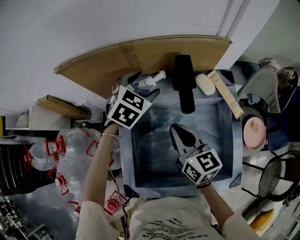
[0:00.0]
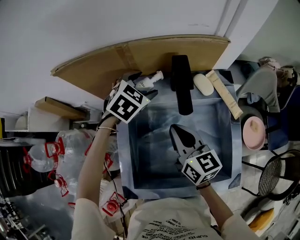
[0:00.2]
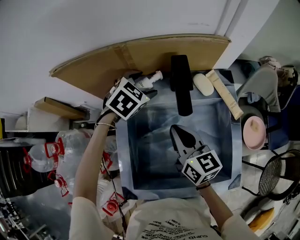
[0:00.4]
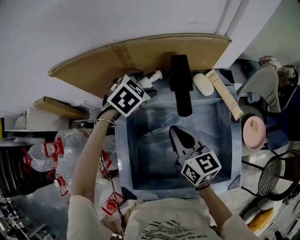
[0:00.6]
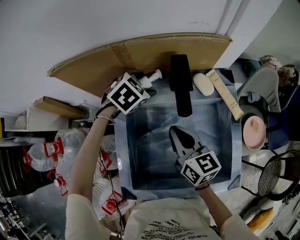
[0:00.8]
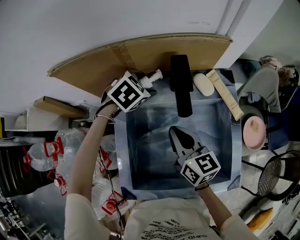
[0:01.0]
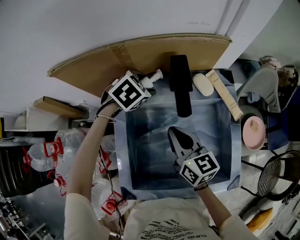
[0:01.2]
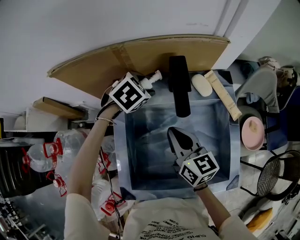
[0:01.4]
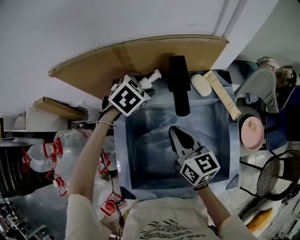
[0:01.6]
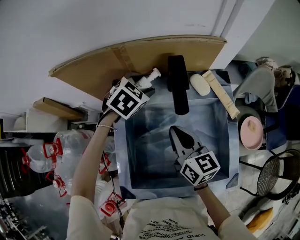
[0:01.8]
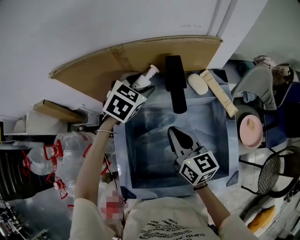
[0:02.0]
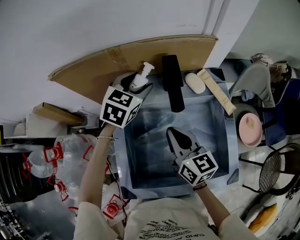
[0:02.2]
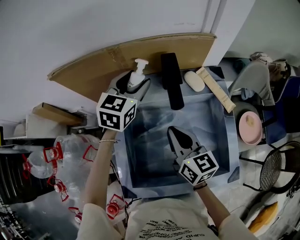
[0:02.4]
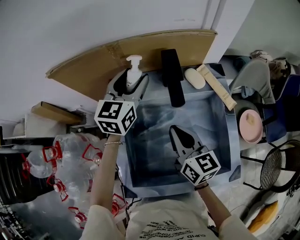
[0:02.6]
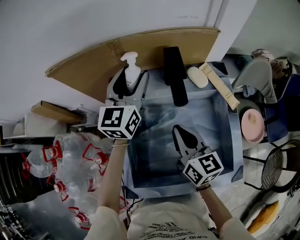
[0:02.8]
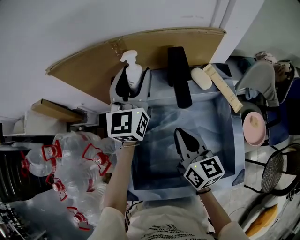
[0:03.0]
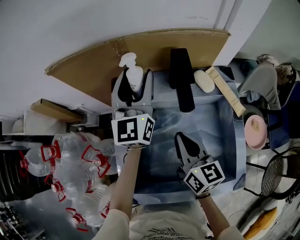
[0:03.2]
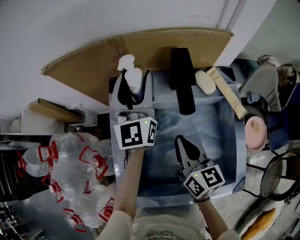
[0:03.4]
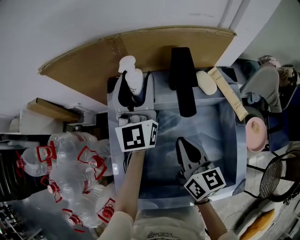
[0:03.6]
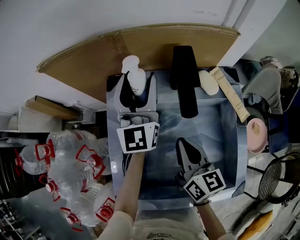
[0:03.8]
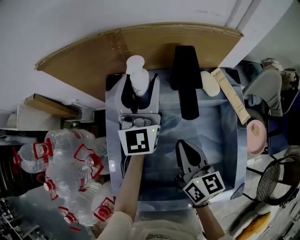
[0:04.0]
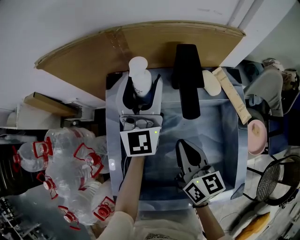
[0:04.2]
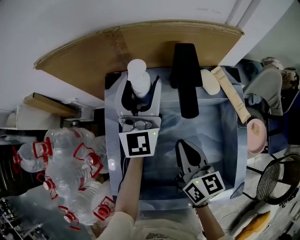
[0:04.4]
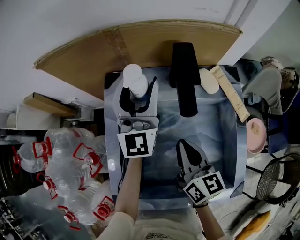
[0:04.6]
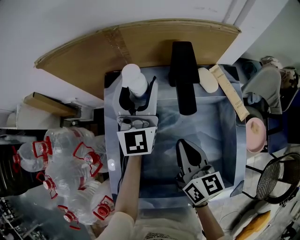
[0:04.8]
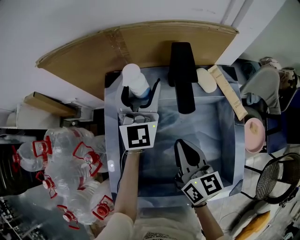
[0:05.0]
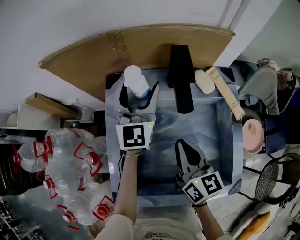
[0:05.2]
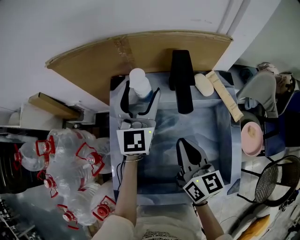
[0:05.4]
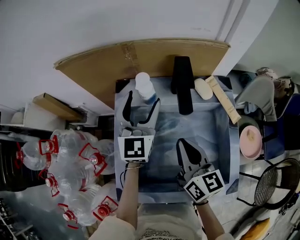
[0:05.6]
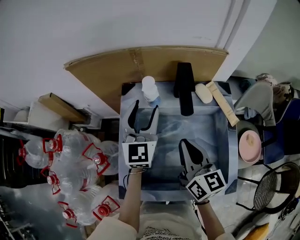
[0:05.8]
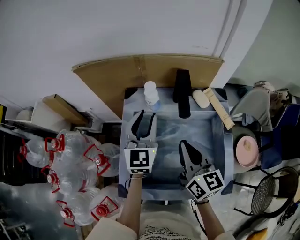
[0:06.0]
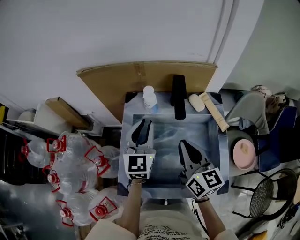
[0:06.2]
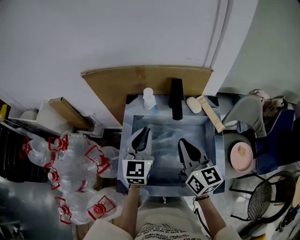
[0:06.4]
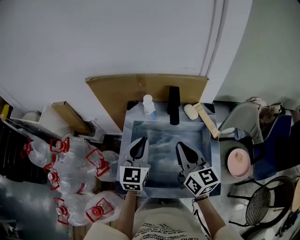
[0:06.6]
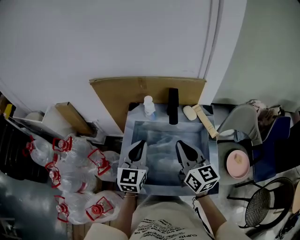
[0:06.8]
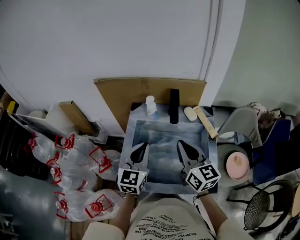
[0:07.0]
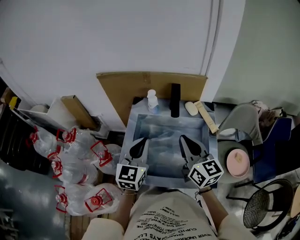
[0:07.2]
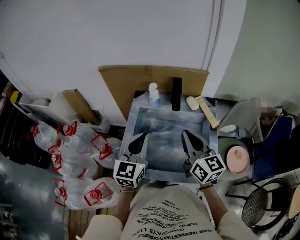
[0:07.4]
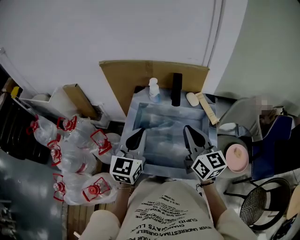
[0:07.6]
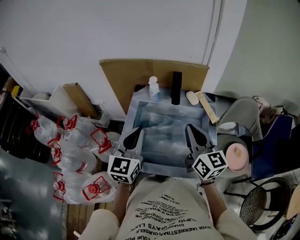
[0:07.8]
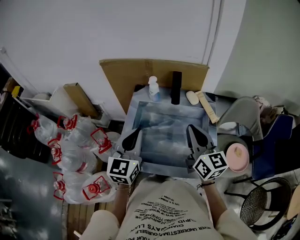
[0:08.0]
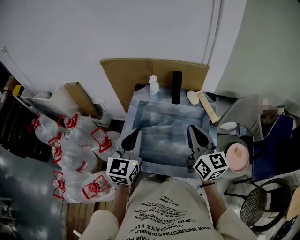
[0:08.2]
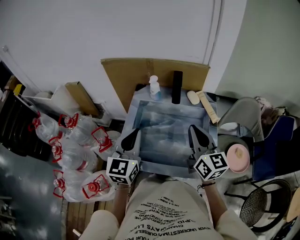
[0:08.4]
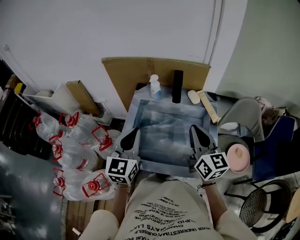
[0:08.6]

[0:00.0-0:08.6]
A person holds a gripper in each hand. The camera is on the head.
0:00.0 to 0:01.4: The left gripper is displaced downward by roughly 5 cm, and rotates about 20 degrees.
0:01.4 to 0:02.8: The left gripper shifts roughly 15 cm upward, and points its fingers some 60 degrees further upward.
0:02.8 to 0:04.4: The left gripper swivels some 30 degrees.
0:04.4 to 0:05.8: The right gripper is displaced upward by some 5 cm. The left gripper moves backward, roughly 5 cm.
0:05.8 to 0:07.2: The right gripper goes roughly 10 cm upward. Meanwhile the left gripper goes about 15 cm backward, and closes up.
0:07.2 to 0:08.6: The grippers make only small movements.

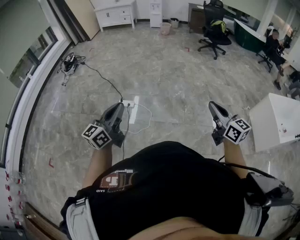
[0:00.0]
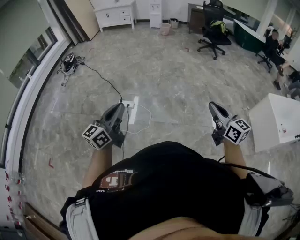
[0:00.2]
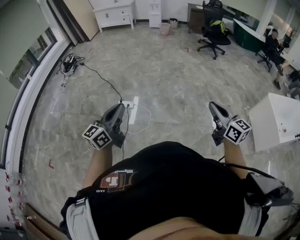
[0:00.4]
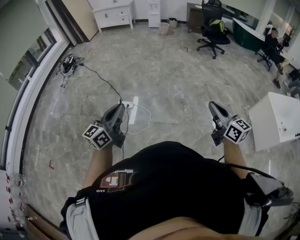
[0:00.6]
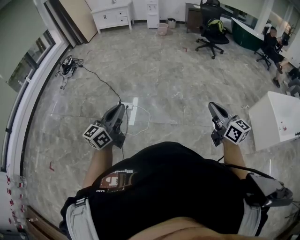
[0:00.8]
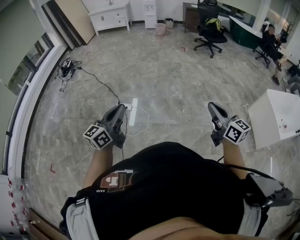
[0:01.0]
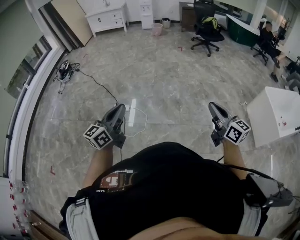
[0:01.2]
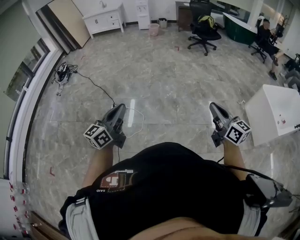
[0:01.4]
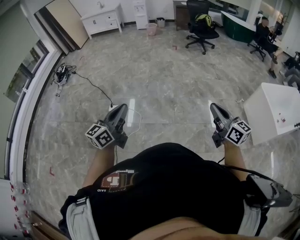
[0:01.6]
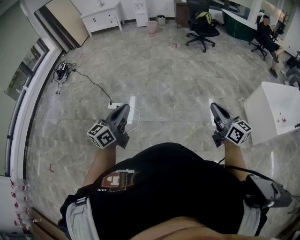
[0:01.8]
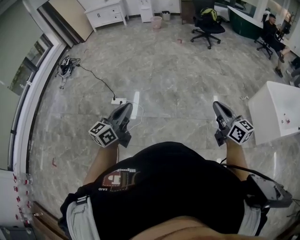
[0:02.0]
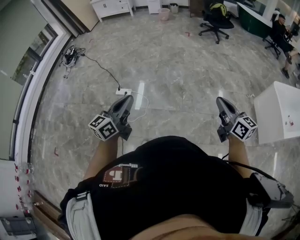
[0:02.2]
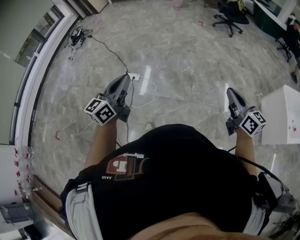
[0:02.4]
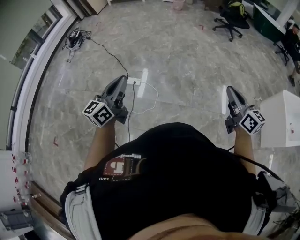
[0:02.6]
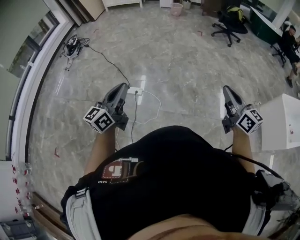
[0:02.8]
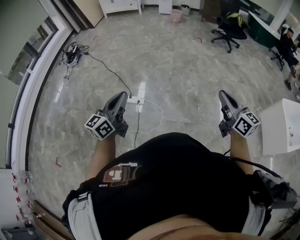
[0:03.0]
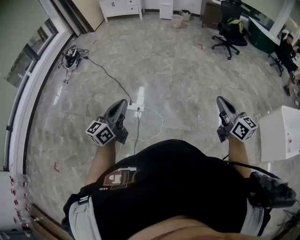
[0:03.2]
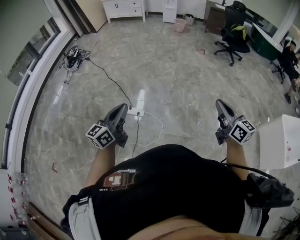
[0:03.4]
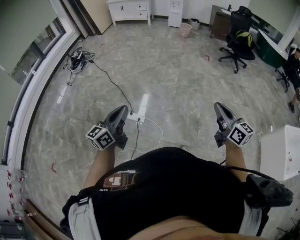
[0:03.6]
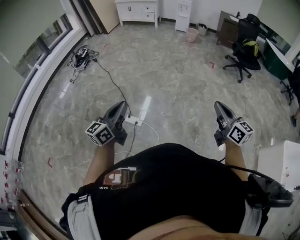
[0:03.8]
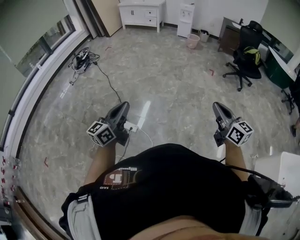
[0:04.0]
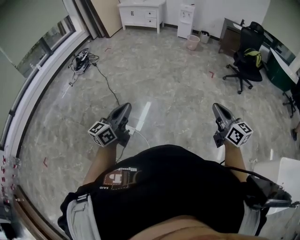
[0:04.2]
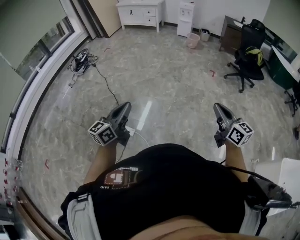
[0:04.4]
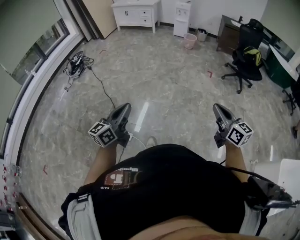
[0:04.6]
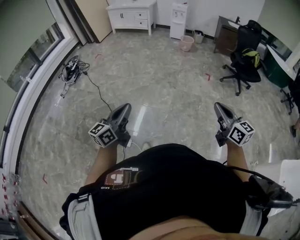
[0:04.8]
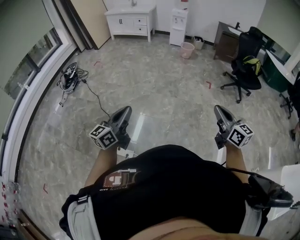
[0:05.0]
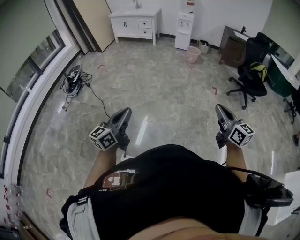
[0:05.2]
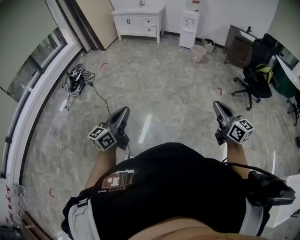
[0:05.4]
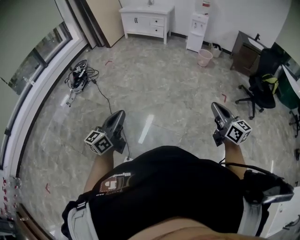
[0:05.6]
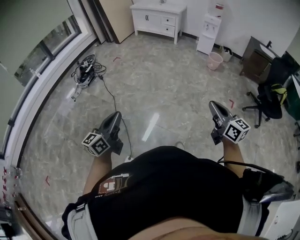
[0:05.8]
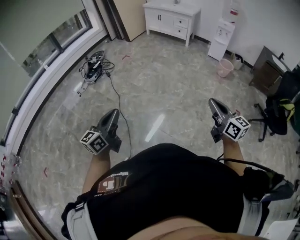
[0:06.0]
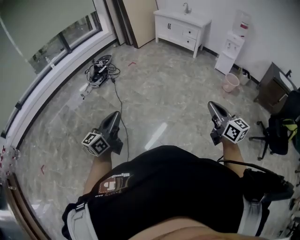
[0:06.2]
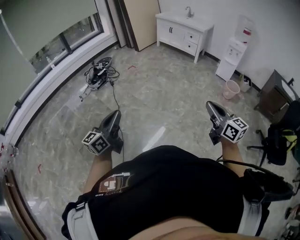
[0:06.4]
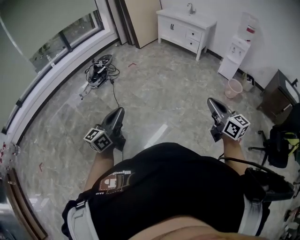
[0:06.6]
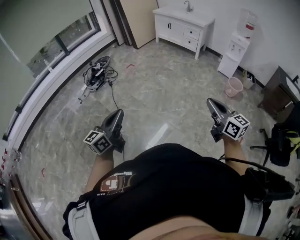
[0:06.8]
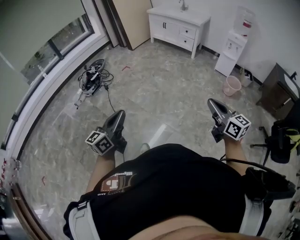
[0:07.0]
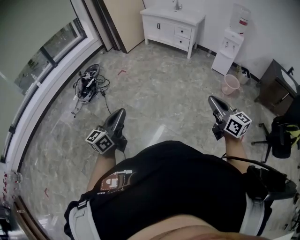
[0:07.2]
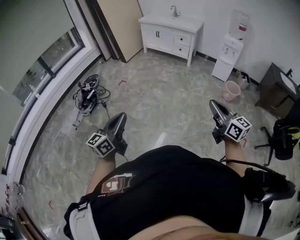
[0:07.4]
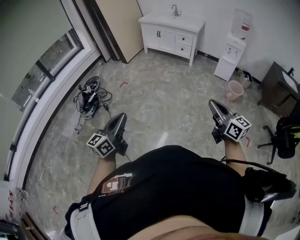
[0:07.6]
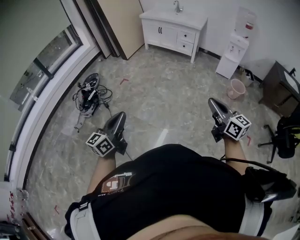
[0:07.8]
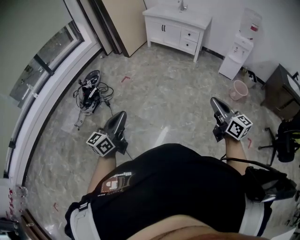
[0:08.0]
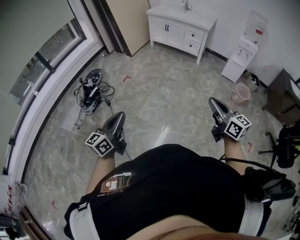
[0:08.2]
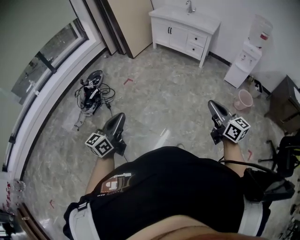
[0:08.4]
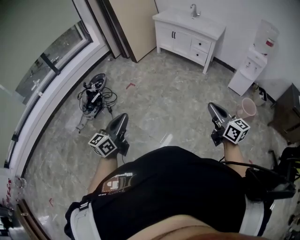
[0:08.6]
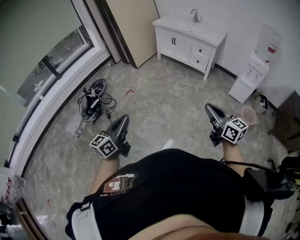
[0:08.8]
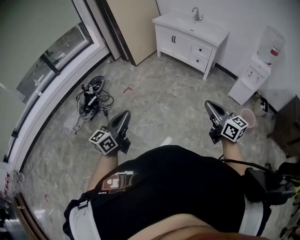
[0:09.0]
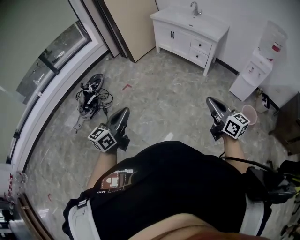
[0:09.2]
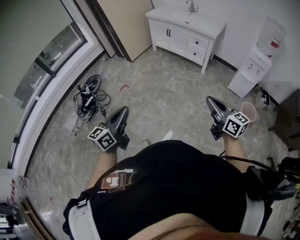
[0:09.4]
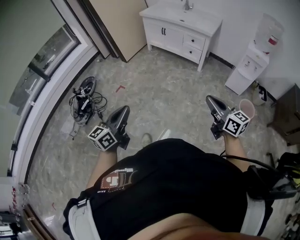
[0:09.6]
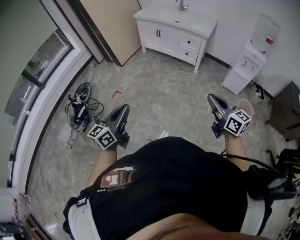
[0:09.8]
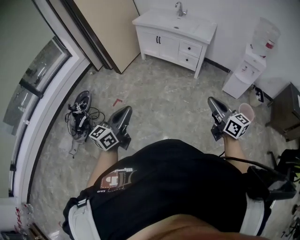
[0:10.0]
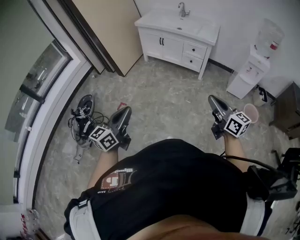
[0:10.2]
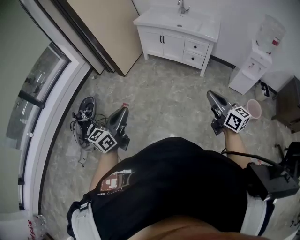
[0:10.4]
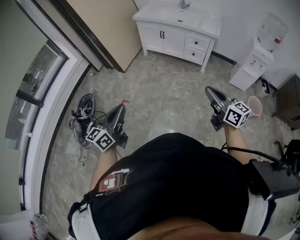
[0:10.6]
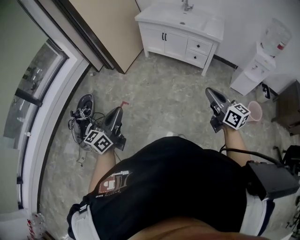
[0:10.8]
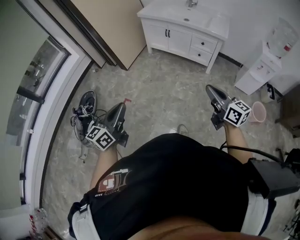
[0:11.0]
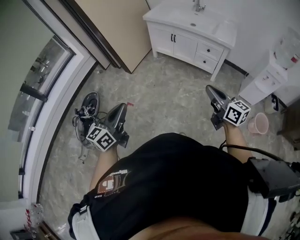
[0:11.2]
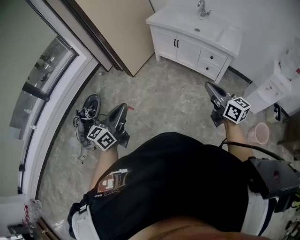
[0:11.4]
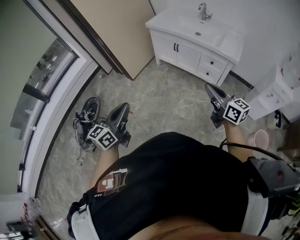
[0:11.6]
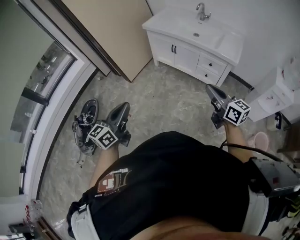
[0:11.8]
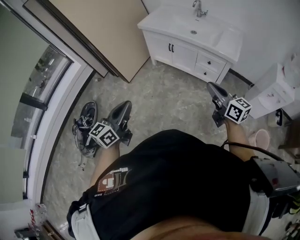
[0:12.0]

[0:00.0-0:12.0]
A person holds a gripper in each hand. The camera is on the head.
0:00.0 to 0:01.6: Both grippers move to the right, roughly 20 cm.
0:01.6 to 0:03.0: The two grippers go about 35 cm to the left and forward.
0:03.0 to 0:04.4: The grippers both shift forward and to the right by roughly 40 cm.
0:04.4 to 0:06.0: The two grippers travel together, forward and to the left, approximately 60 cm.
0:06.0 to 0:07.6: The pair of grippers is taken forward, about 50 cm.
0:07.6 to 0:09.0: The right gripper heads forward, covering approximately 40 cm, while the left gripper goes roughly 35 cm forward and to the right.
0:09.0 to 0:10.4: The left gripper goes approximately 35 cm forward; the right gripper shifts roughly 30 cm forward and to the left.
0:10.4 to 0:12.0: The grippers both shift forward by approximately 40 cm.

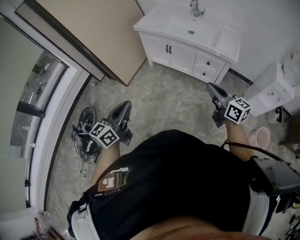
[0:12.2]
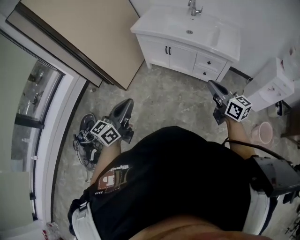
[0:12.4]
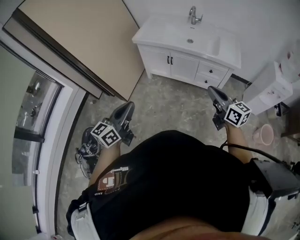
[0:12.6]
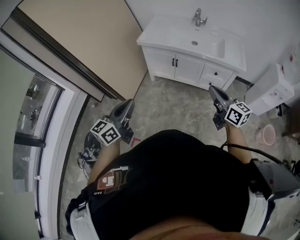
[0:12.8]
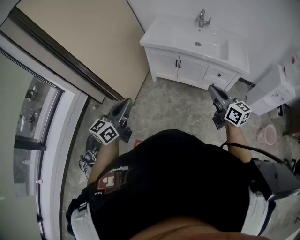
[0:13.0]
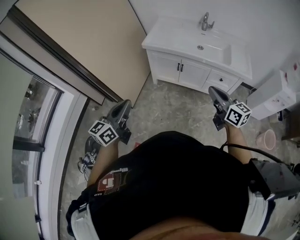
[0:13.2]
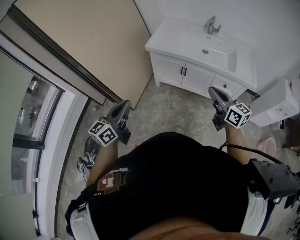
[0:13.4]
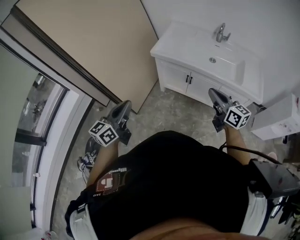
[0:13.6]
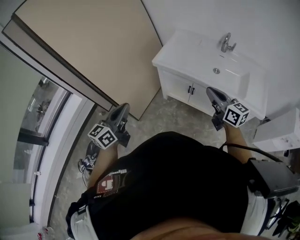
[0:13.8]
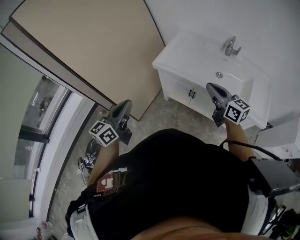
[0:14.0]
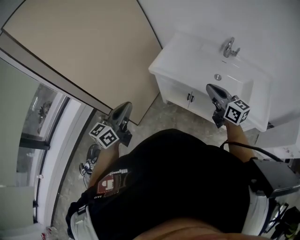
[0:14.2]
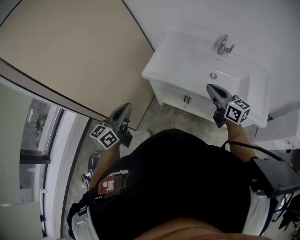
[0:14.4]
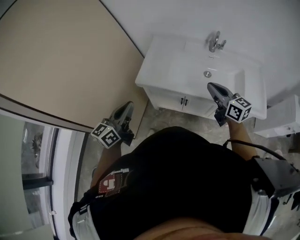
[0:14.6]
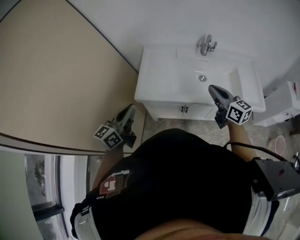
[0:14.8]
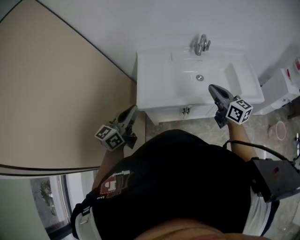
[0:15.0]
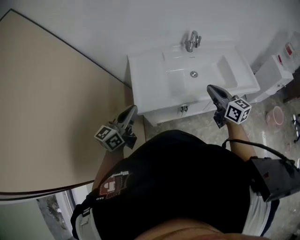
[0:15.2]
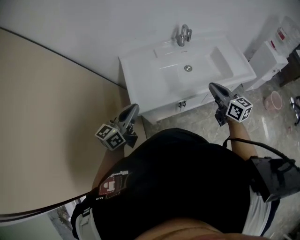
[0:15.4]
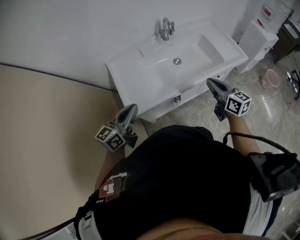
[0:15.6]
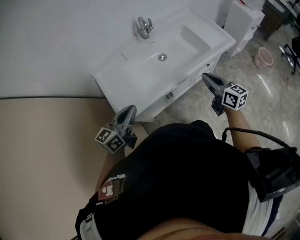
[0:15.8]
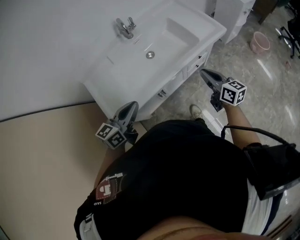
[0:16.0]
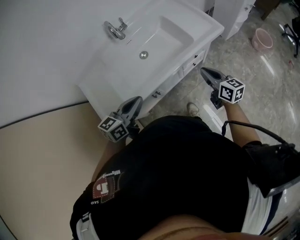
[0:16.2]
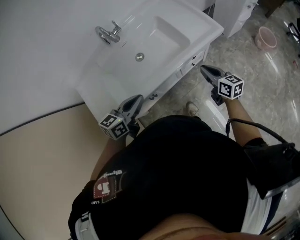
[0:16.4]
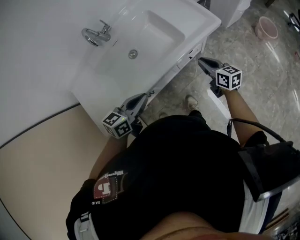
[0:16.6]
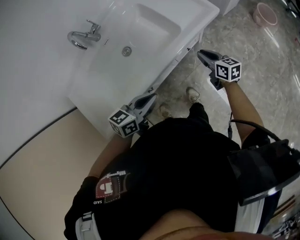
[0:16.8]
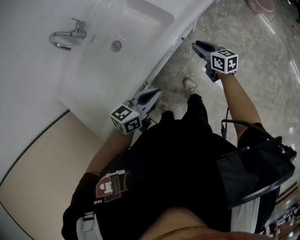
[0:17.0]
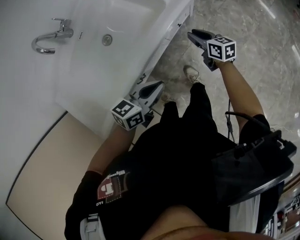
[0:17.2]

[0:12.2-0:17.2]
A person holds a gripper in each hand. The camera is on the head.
0:12.2 to 0:13.8: The two grippers travel together, forward and to the left, roughly 50 cm.
0:13.8 to 0:15.6: The left gripper moves about 50 cm, and turns by some 60 degrees. Meanwhile the right gripper shifts by some 20 cm, and swivels roughly 50 degrees.
0:15.6 to 0:17.2: The left gripper moves approximately 50 cm, and rotates about 50 degrees. Meanwhile the right gripper shifts approximately 40 cm downward, rotates about 30 degrees, and opens up.
